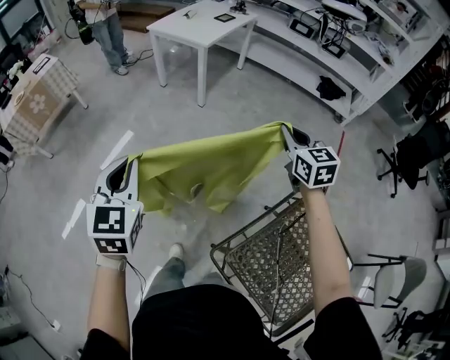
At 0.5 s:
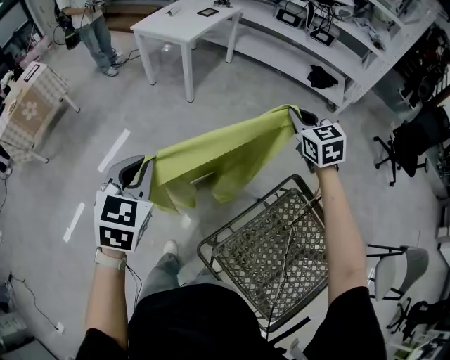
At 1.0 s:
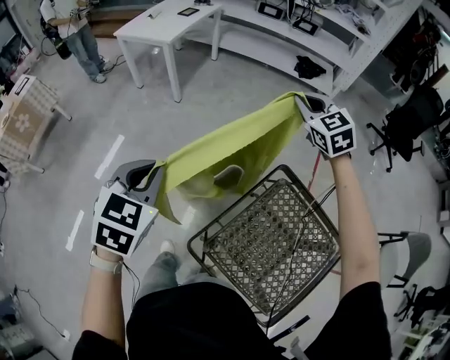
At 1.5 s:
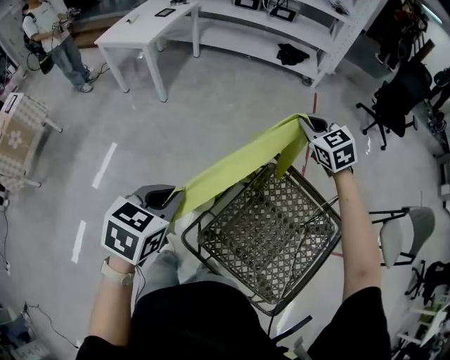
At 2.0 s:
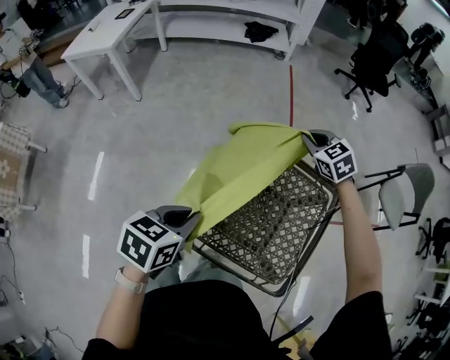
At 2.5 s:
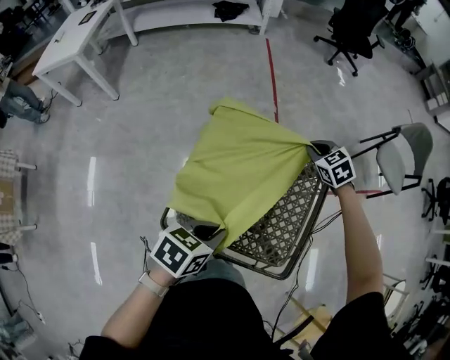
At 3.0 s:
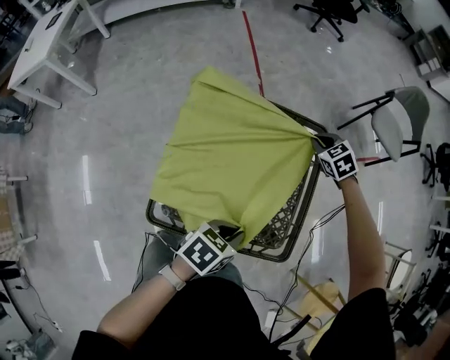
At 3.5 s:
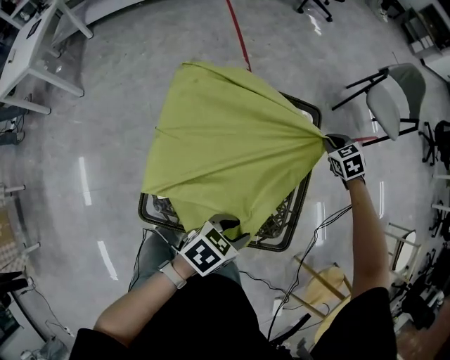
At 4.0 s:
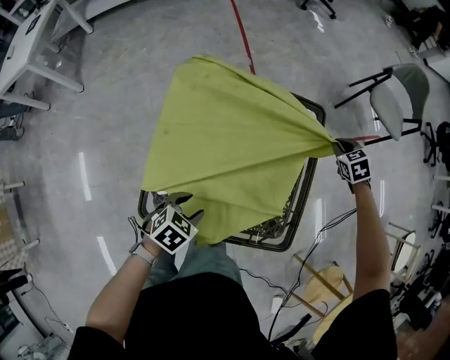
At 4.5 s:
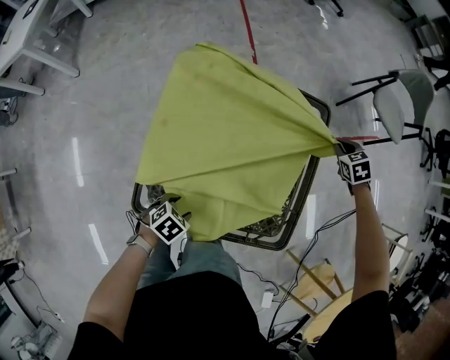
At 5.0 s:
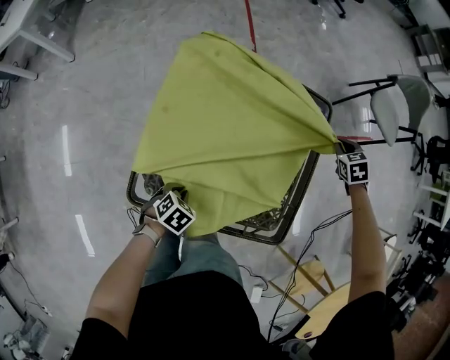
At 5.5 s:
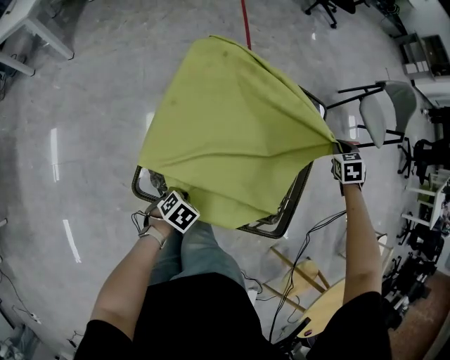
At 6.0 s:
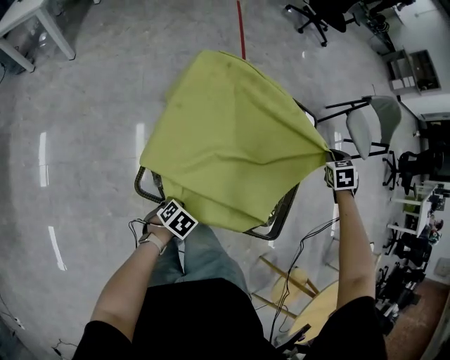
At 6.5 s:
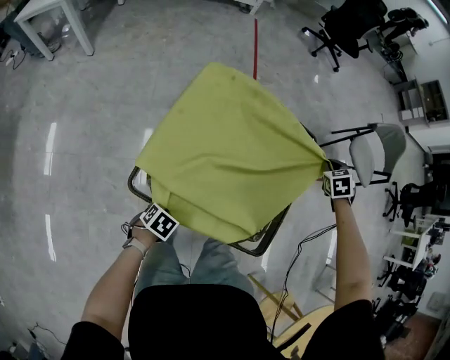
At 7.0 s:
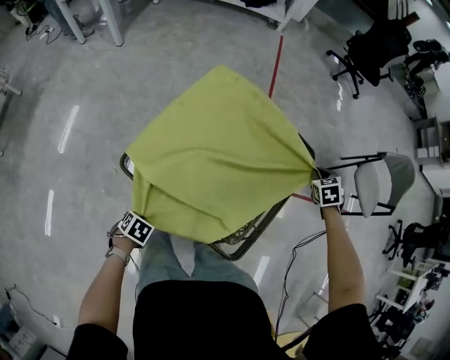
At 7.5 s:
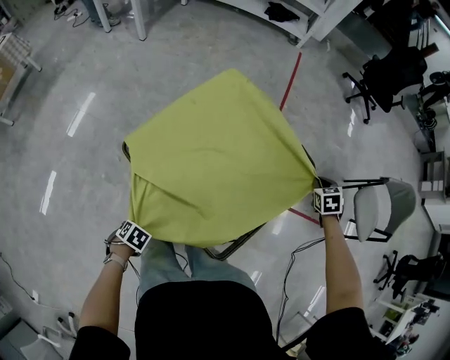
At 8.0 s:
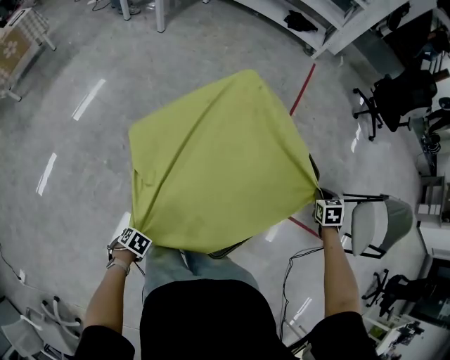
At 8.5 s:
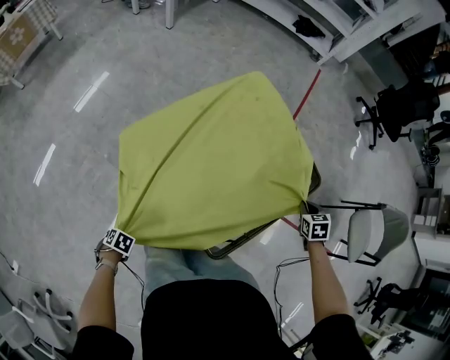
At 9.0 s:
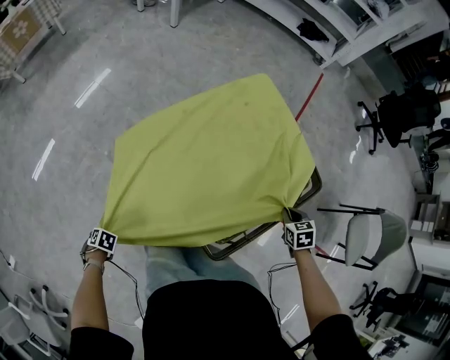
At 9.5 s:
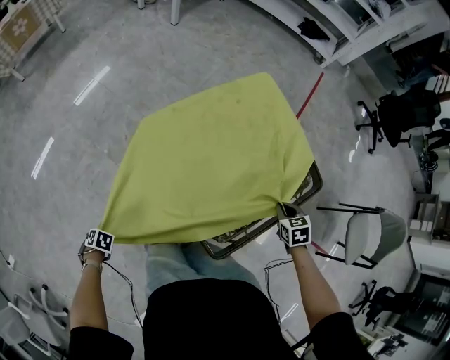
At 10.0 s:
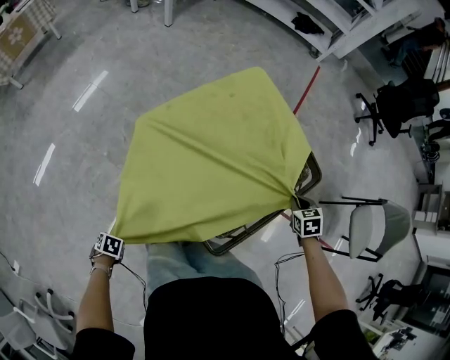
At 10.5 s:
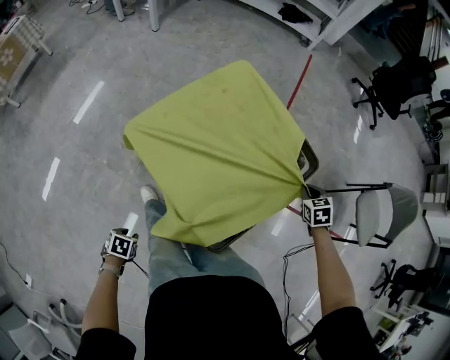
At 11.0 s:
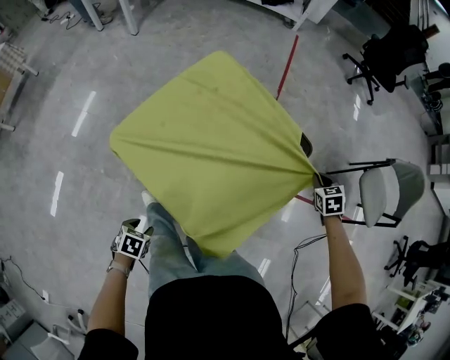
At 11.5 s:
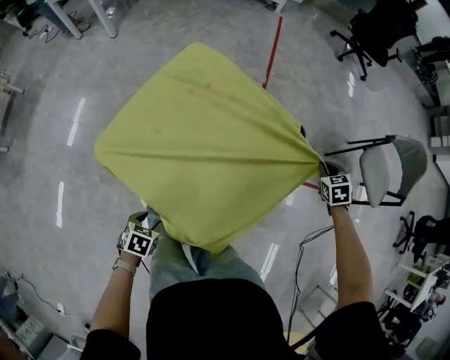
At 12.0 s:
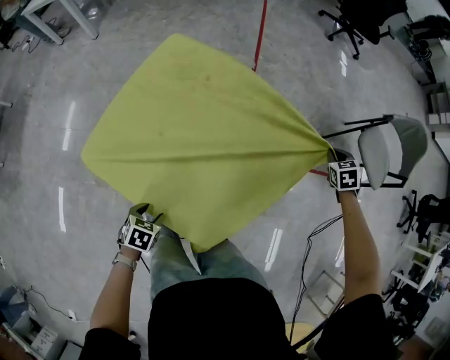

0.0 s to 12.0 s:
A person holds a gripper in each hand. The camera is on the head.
0.0 to 2.0 s: The two grippers travel together, about 40 cm. The left gripper changes its angle by approximately 70 degrees. The right gripper swivels roughly 30 degrees.
2.0 to 4.0 s: The left gripper moves downward, roughly 25 cm, rotates approximately 40 degrees, and opens up; the right gripper shifts by some 50 cm, and turns by some 40 degrees.
4.0 to 6.0 s: The left gripper heads downward and backward, covering some 15 cm, and closes. The right gripper is displaced backward and upward by some 10 cm.
6.0 to 8.0 s: The right gripper ends up some 10 cm from where it was, and changes its angle by approximately 30 degrees, while the left gripper changes place by about 30 cm, and rotates around the line of its fingers by about 50 degrees, counterclockwise from behind.
8.0 to 10.0 s: The left gripper ends up about 15 cm from where it was.
10.0 to 12.0 s: The right gripper moves some 25 cm, and swivels about 20 degrees. The left gripper shifts by about 35 cm, rotates approximately 40 degrees, and opens.

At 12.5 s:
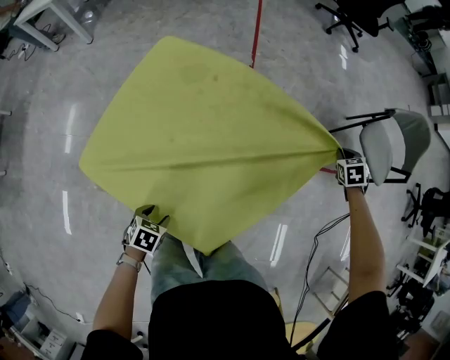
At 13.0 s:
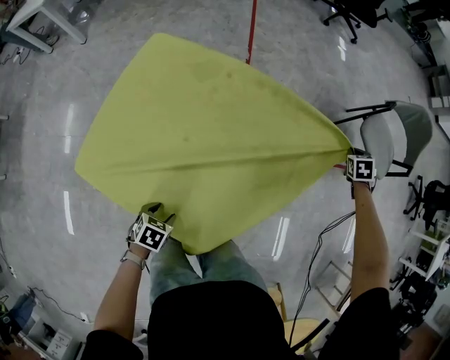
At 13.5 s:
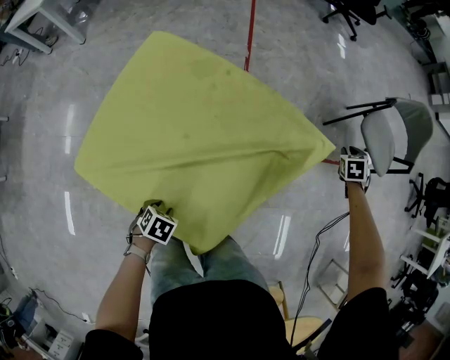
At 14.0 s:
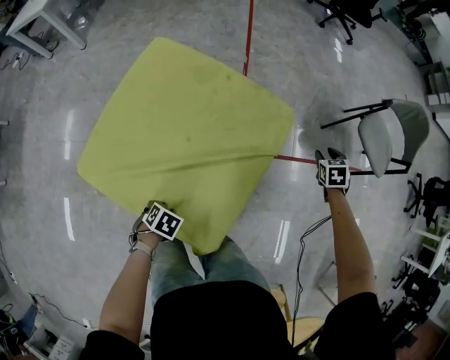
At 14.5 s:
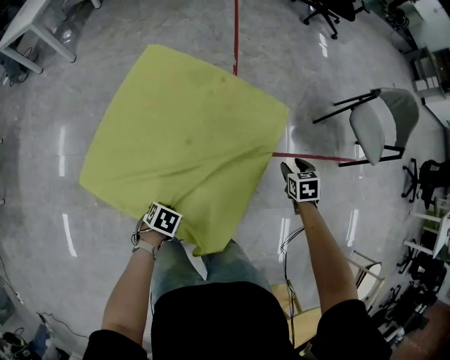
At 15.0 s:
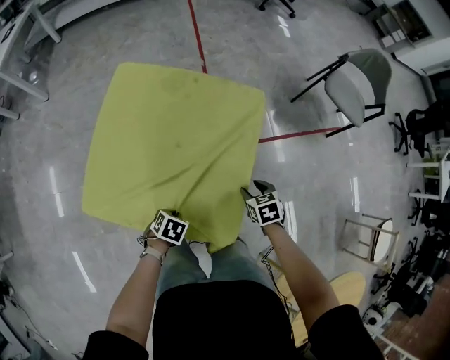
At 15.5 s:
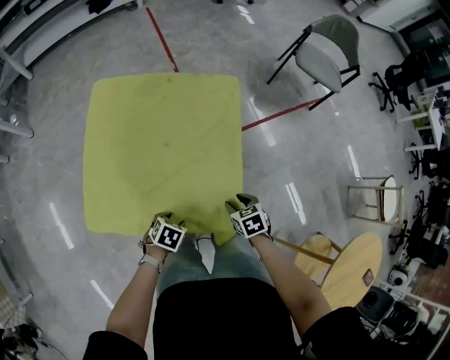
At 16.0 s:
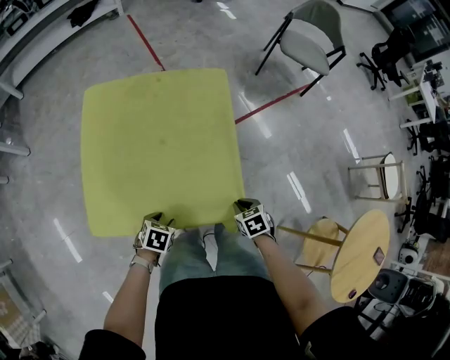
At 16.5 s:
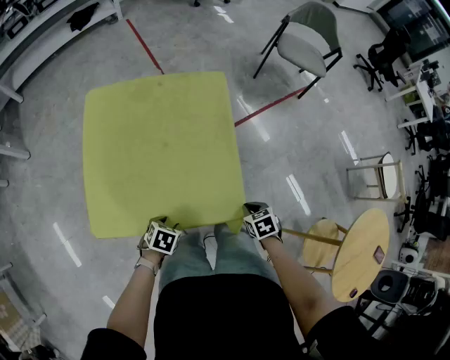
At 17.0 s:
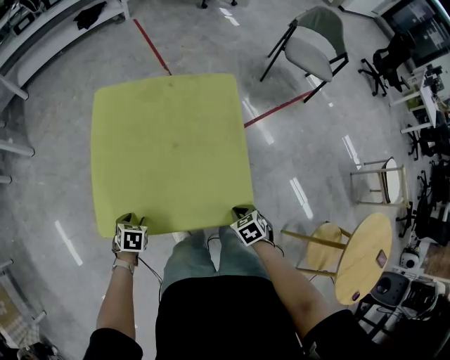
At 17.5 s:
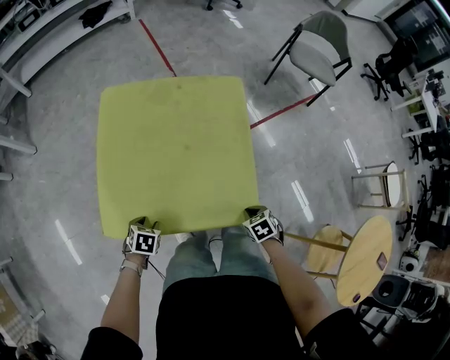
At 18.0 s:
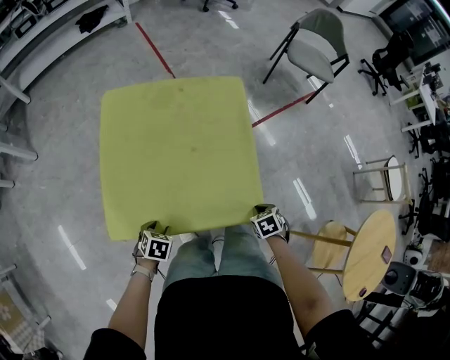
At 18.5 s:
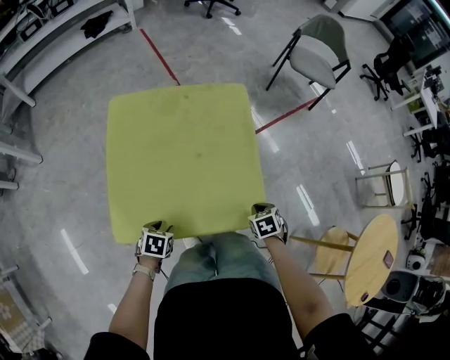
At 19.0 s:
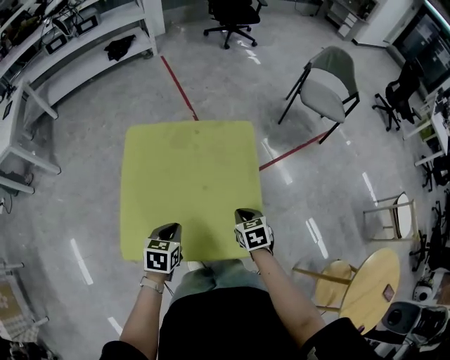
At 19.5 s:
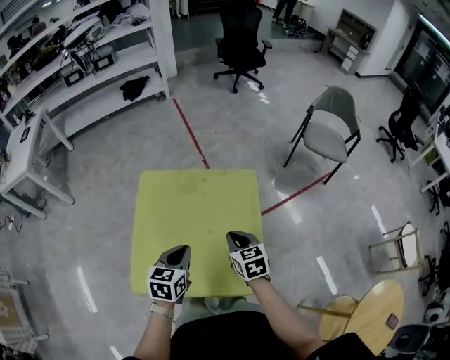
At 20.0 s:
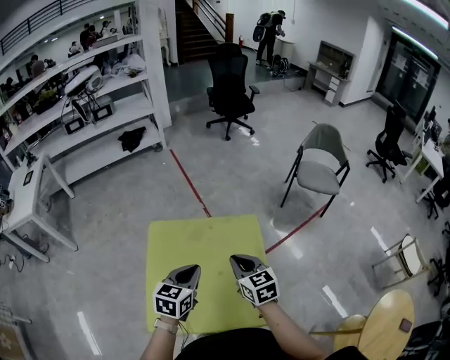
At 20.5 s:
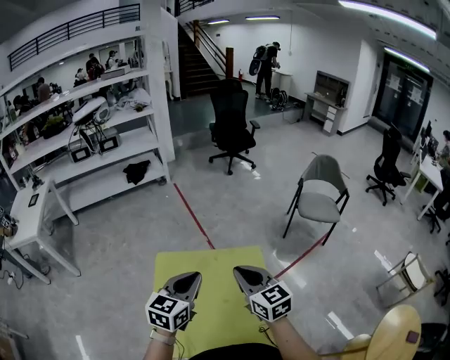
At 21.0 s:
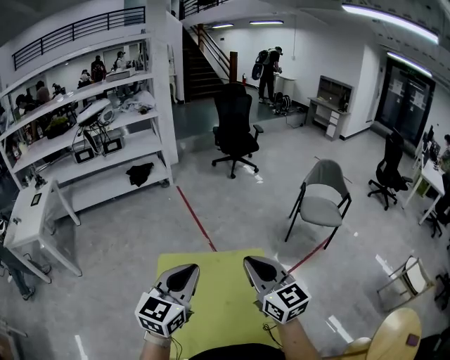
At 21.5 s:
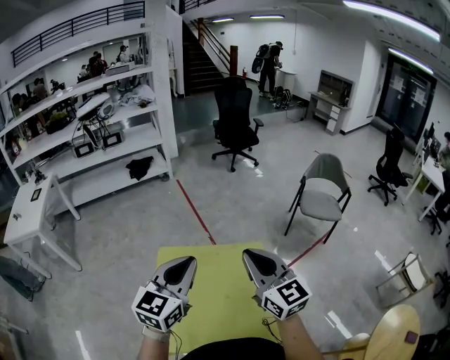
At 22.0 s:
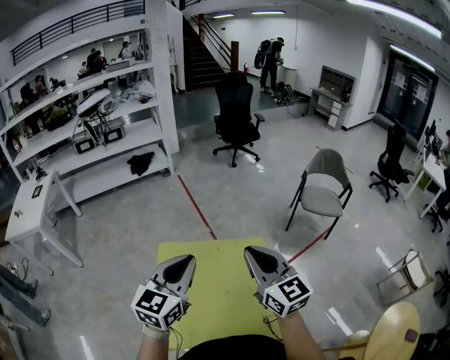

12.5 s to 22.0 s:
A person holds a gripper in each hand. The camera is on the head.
12.5 to 14.5 s: The right gripper changes place by some 20 cm, and opens up. The left gripper closes up.
14.5 to 16.5 s: The right gripper ends up approximately 35 cm from where it was, changes its angle by about 20 degrees, and closes. Meanwhile the left gripper moves some 5 cm, changes its angle by roughly 30 degrees, and opens.
16.5 to 18.0 s: The left gripper shifts by approximately 10 cm.
18.0 to 20.0 s: Both grippers move upward, roughly 35 cm. The left gripper points its fingers approximately 40 degrees further upward, and closes its fingers, while the right gripper tips its fingers upward by about 50 degrees.
20.0 to 22.0 s: Both grippers move upward, about 20 cm. The right gripper rotates approximately 30 degrees; the left gripper swivels roughly 30 degrees.

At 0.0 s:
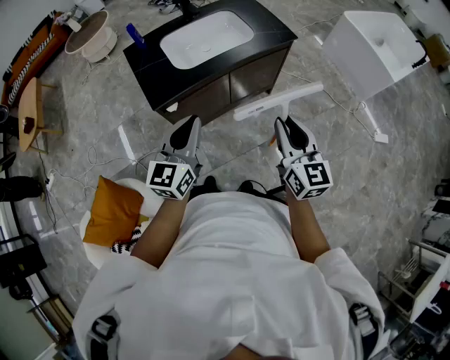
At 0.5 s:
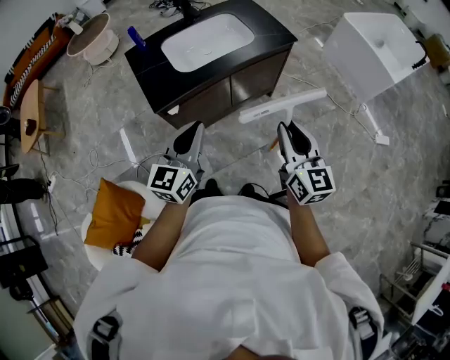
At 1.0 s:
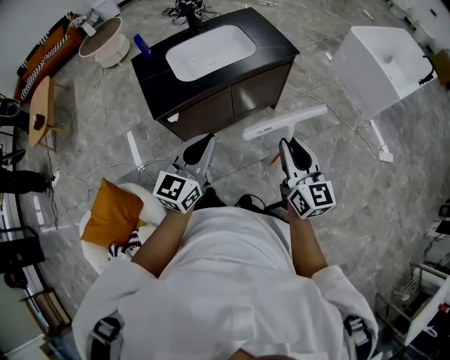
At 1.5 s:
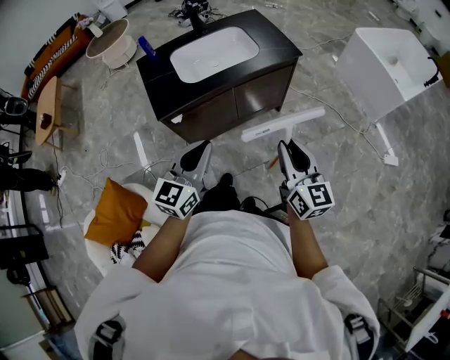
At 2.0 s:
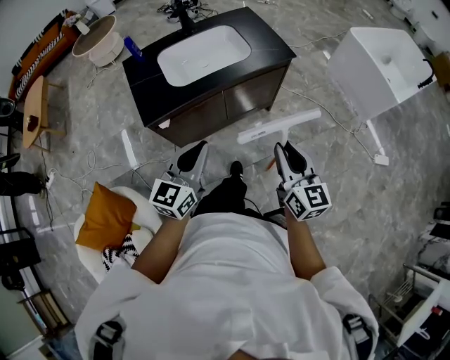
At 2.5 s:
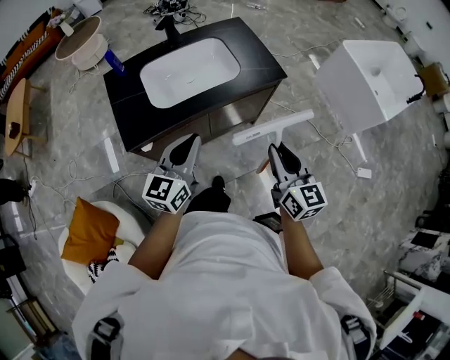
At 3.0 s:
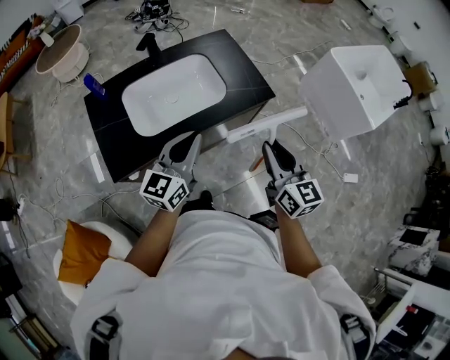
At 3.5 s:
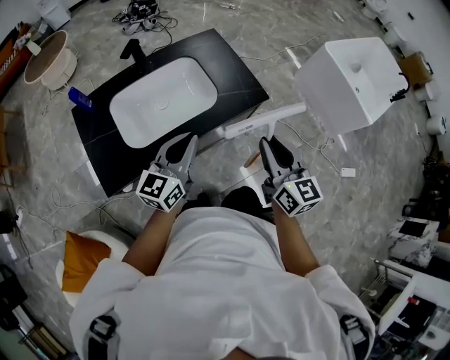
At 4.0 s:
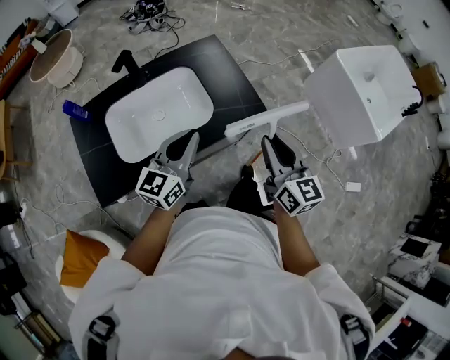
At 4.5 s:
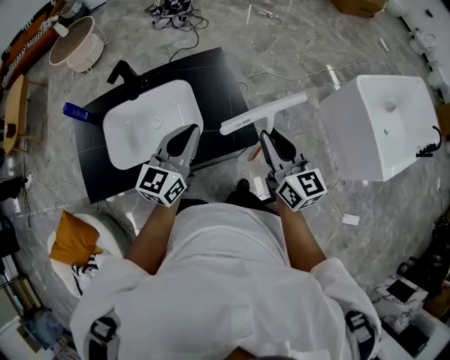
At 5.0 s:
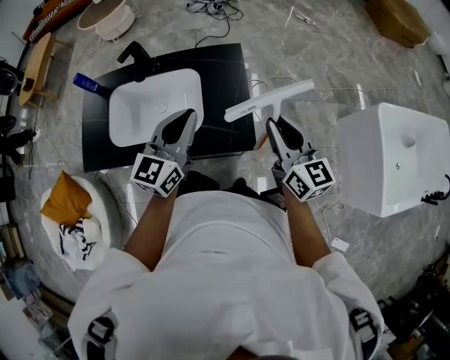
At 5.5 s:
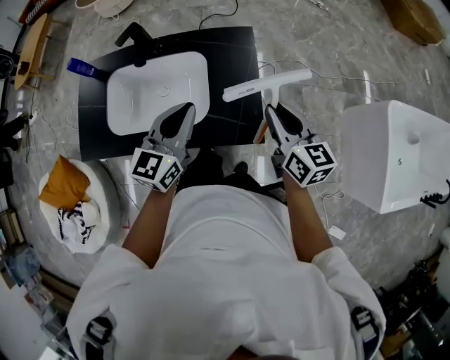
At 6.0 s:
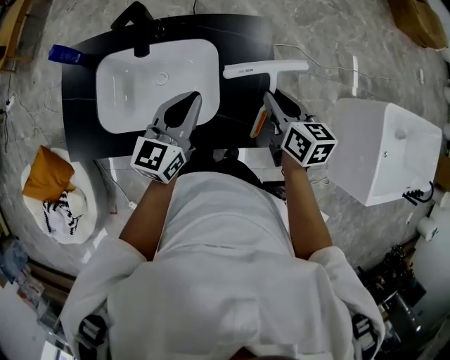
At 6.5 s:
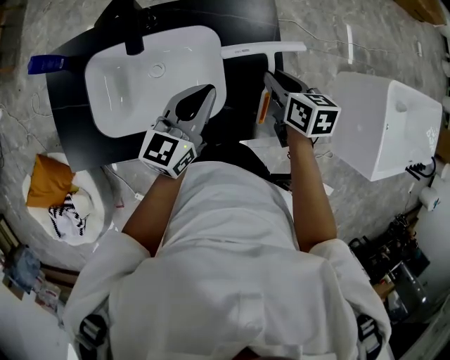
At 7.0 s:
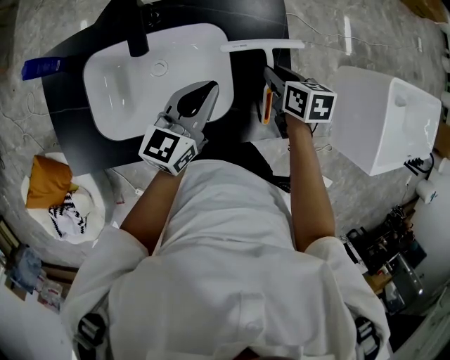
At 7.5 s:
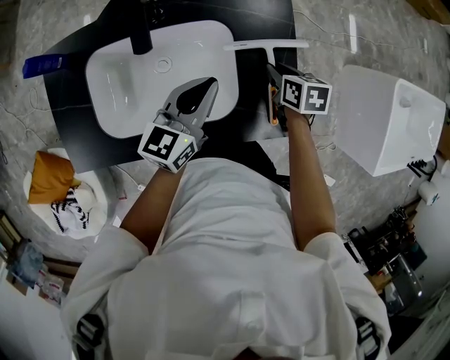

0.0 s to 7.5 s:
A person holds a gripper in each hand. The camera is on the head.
0.0 to 2.0 s: Both grippers move to the right, some 5 cm.
2.0 to 4.0 s: The two grippers go about 40 cm forward.
4.0 to 5.5 s: The right gripper ends up about 25 cm from where it was, and rotates approximately 30 degrees, while the left gripper changes place by some 15 cm, and turns by approximately 30 degrees.
5.5 to 7.5 s: The right gripper goes some 25 cm downward, forward and to the left, and tilts its fingers approximately 40 degrees downward. The left gripper goes roughly 15 cm downward, forward and to the left.
